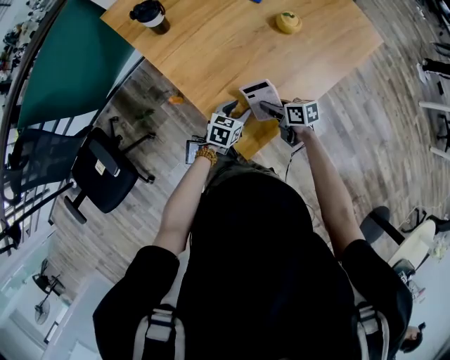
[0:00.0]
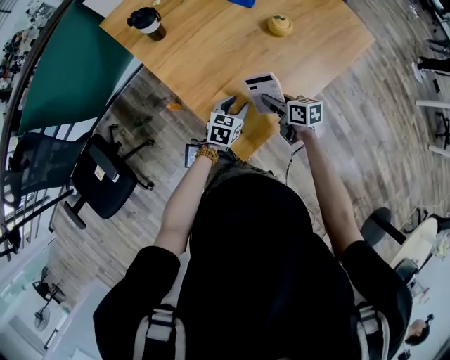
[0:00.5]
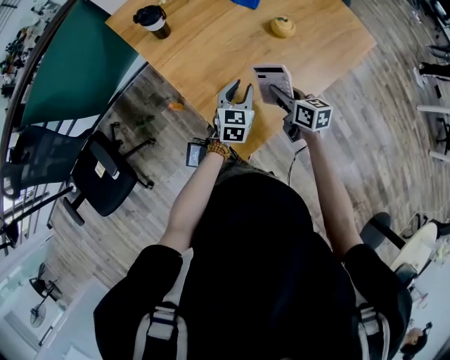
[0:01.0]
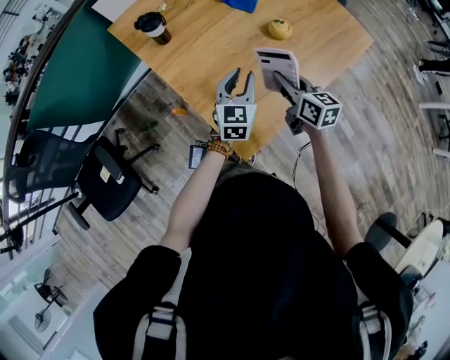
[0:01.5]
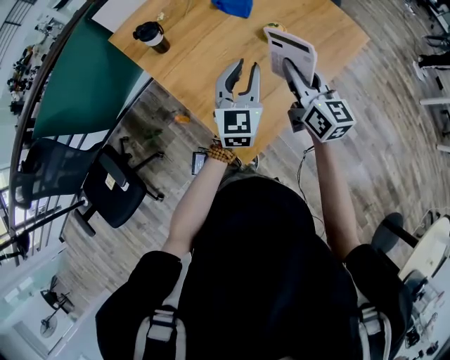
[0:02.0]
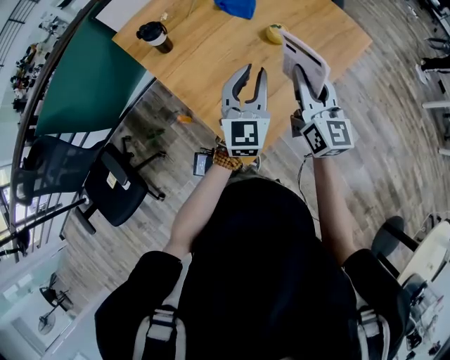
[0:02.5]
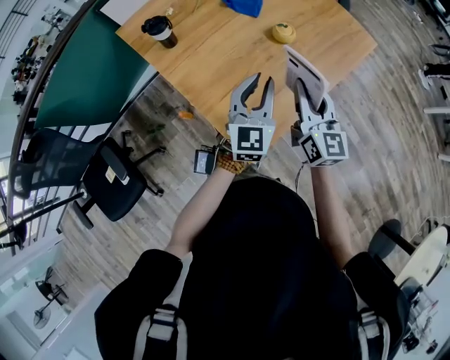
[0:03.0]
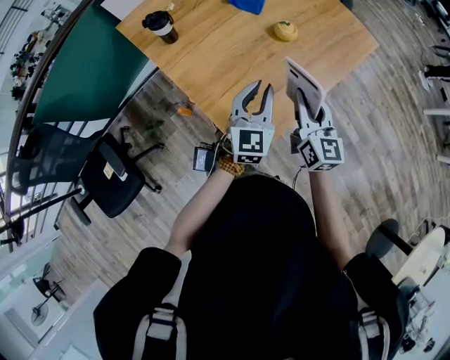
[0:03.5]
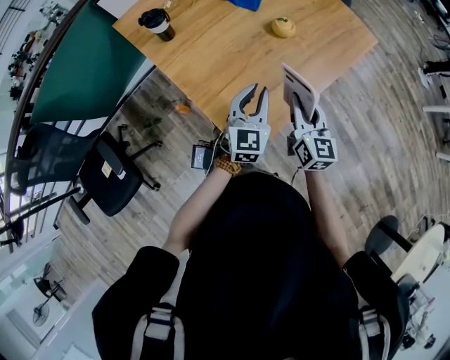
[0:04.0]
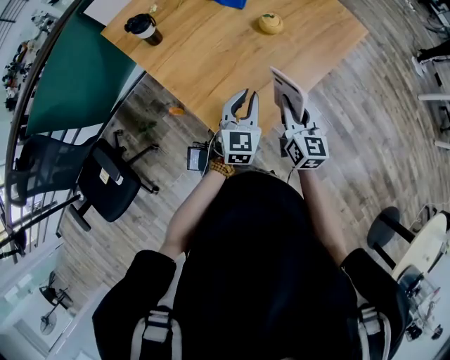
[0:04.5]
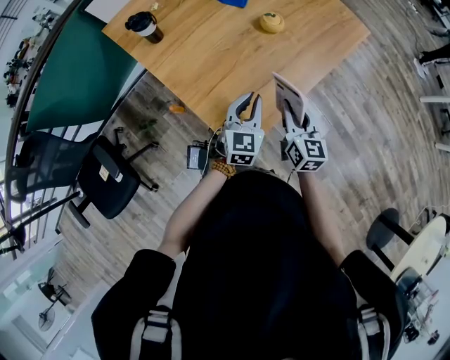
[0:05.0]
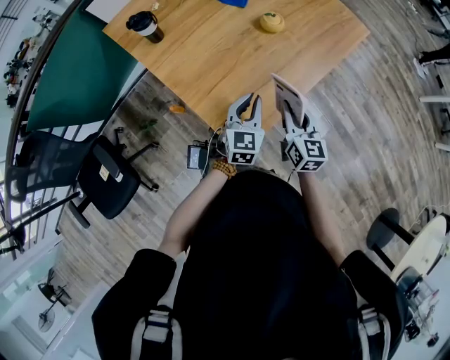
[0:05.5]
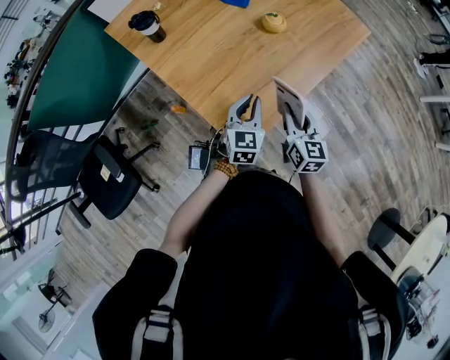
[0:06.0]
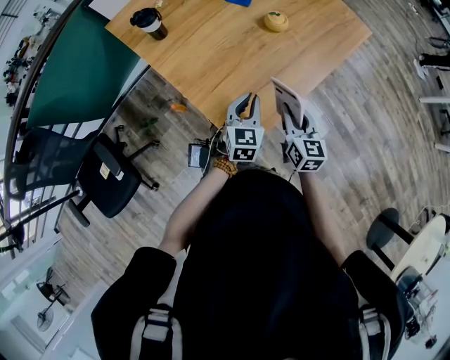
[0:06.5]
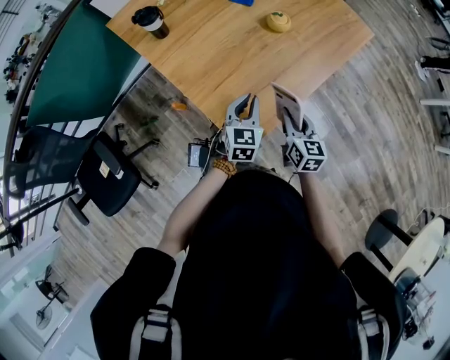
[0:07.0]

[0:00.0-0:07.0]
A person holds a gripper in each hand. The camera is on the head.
0:00.0 to 0:02.0: The two grippers go approximately 30 cm upward. The right gripper tips its fingers upward by approximately 30 degrees. The left gripper tilts its fingers roughly 40 degrees upward, and closes up.
0:02.0 to 0:03.5: The left gripper travels backward by approximately 5 cm. Meanwhile the right gripper goes roughly 10 cm backward and downward.
0:03.5 to 0:05.0: Both grippers travel together downward, roughly 10 cm.
0:05.0 to 0:07.0: The right gripper ends up roughly 5 cm from where it was.

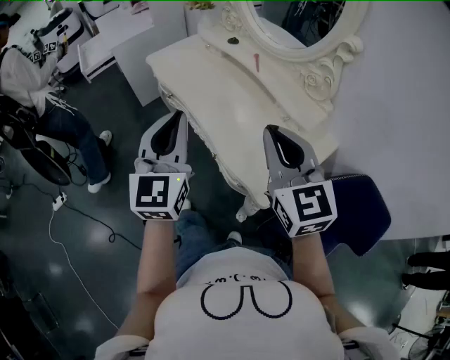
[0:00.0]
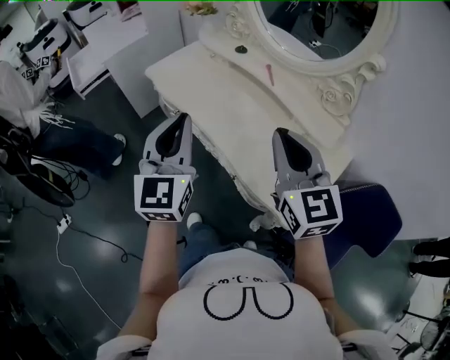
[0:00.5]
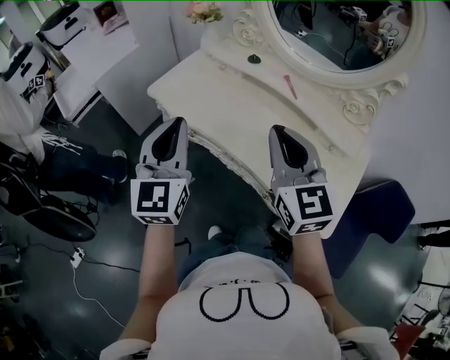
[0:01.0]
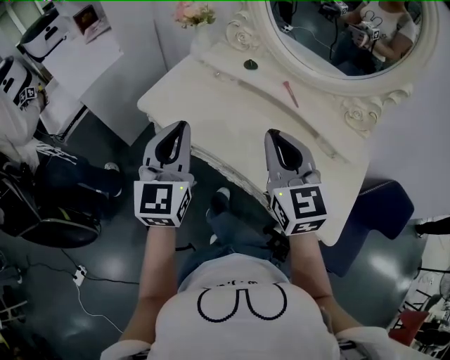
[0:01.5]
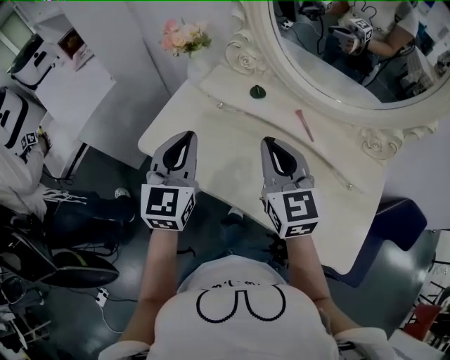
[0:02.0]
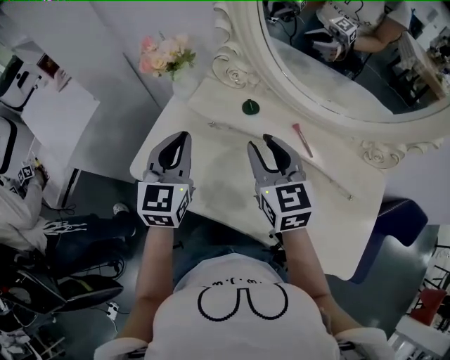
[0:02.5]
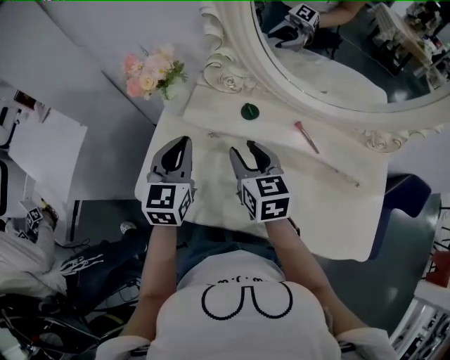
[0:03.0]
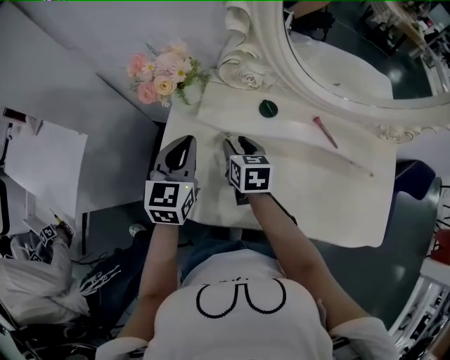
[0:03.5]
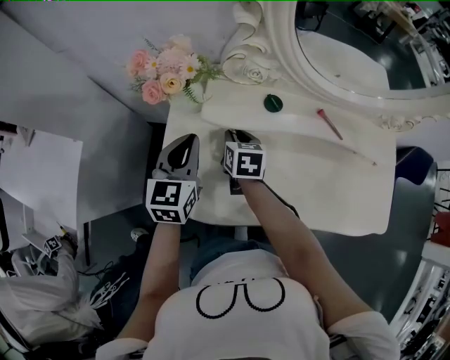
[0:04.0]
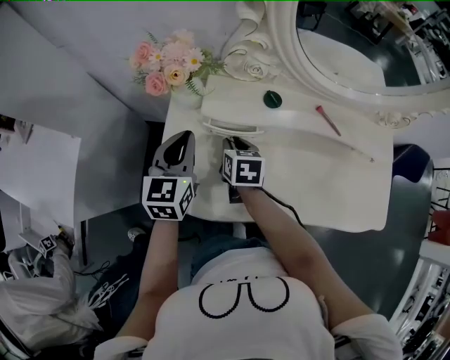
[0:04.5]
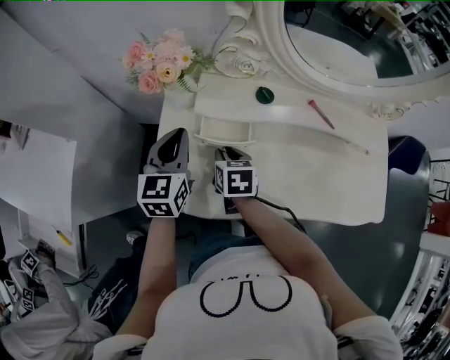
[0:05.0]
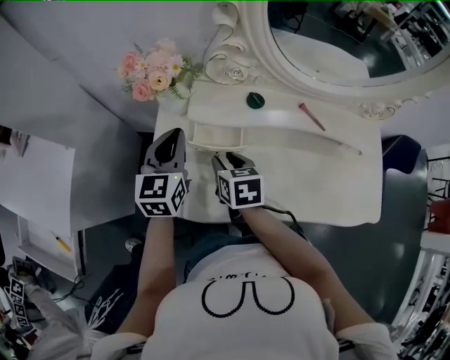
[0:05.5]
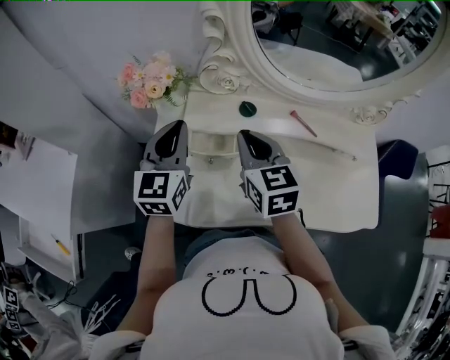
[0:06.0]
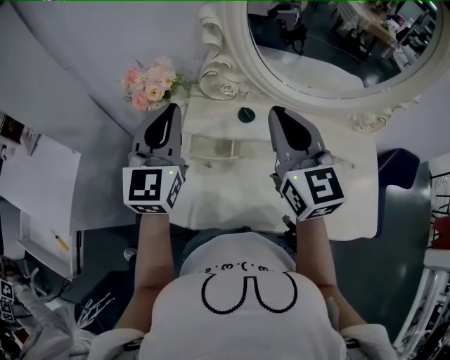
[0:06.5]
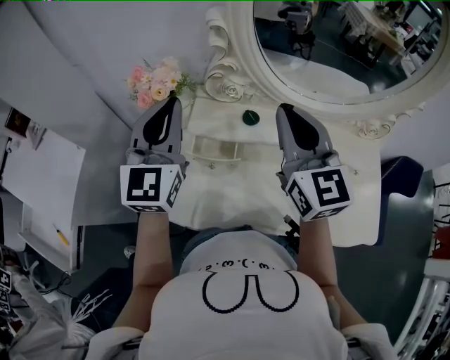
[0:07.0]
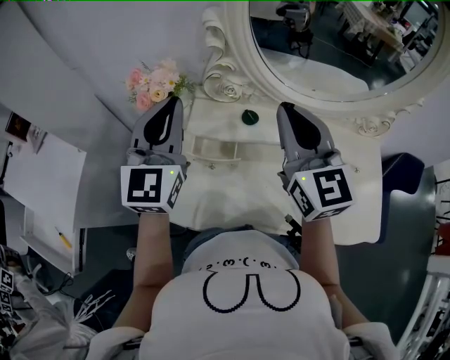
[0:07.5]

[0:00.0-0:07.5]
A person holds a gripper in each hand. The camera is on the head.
0:00.0 to 0:02.0: Both grippers are carried forward and to the left, about 50 cm. The left gripper changes its angle by some 30 degrees. Meanwhile the right gripper rotates about 30 degrees.
0:02.0 to 0:04.0: The right gripper travels downward, forward and to the left by about 35 cm, angles its fingers downward, by roughly 30 degrees, and opens up; the left gripper goes about 25 cm forward, downward and to the left, and turns by about 30 degrees.
0:04.0 to 0:05.5: The right gripper goes some 10 cm backward.
0:05.5 to 0:07.5: The right gripper goes approximately 30 cm upward and to the right, tilts its fingers about 50 degrees upward, and closes up. The left gripper travels upward by approximately 20 cm, and rotates about 30 degrees.

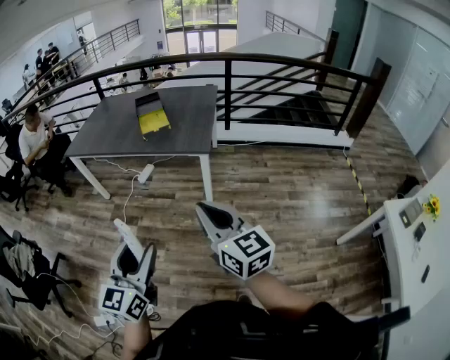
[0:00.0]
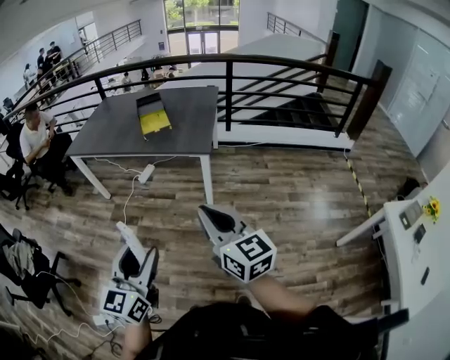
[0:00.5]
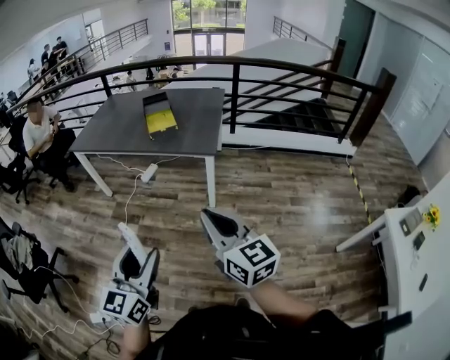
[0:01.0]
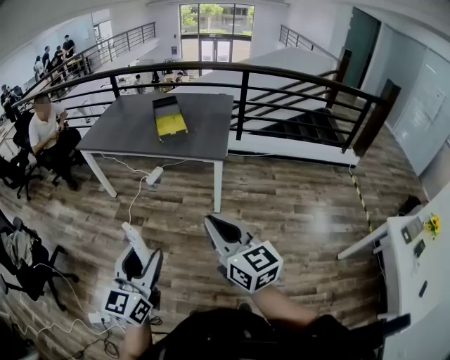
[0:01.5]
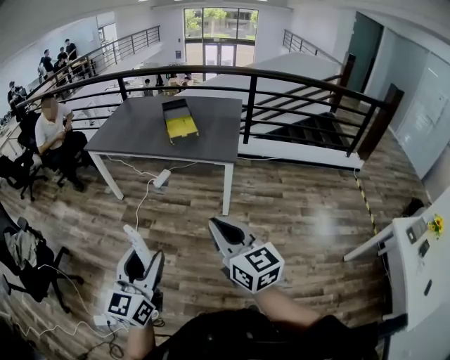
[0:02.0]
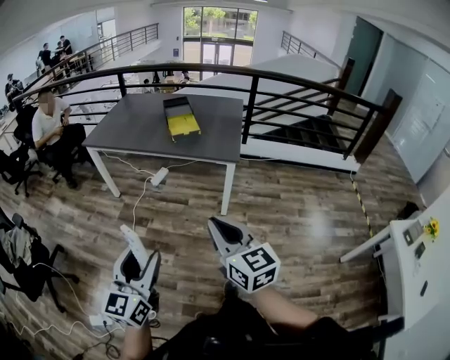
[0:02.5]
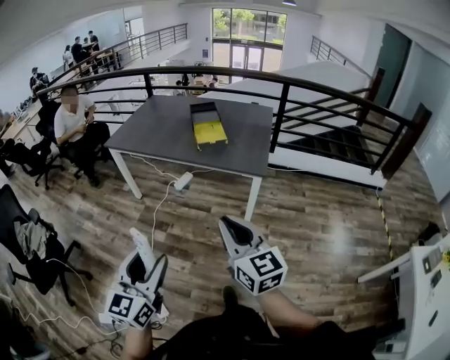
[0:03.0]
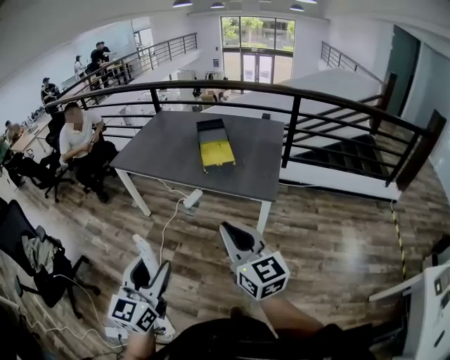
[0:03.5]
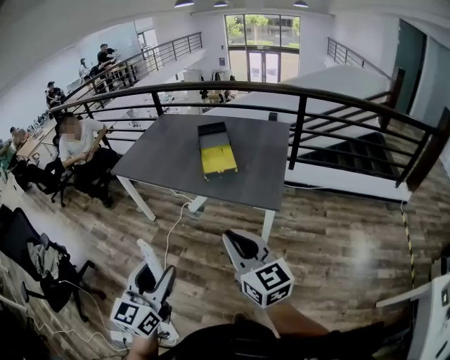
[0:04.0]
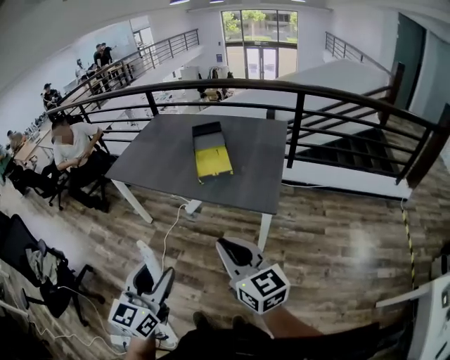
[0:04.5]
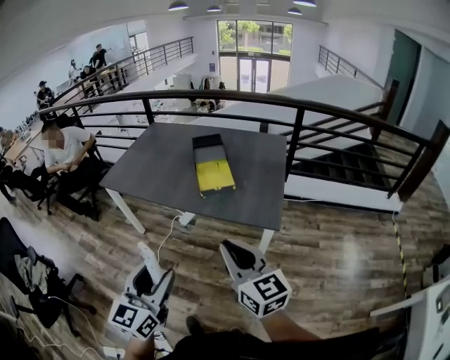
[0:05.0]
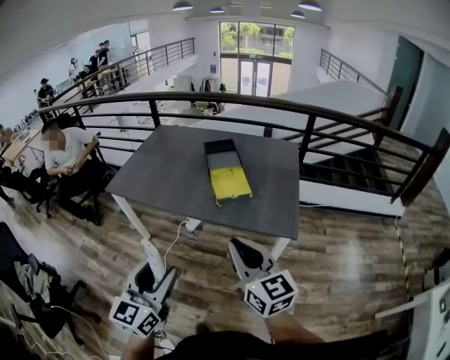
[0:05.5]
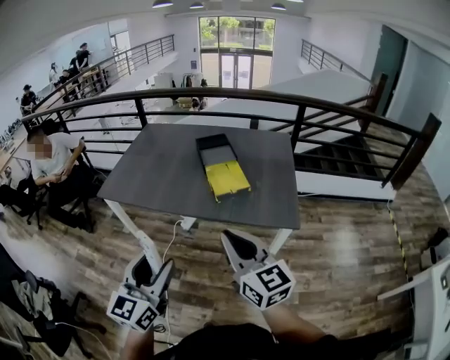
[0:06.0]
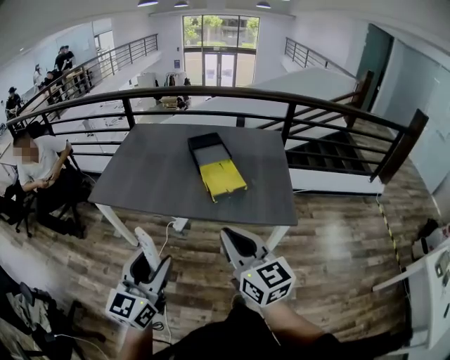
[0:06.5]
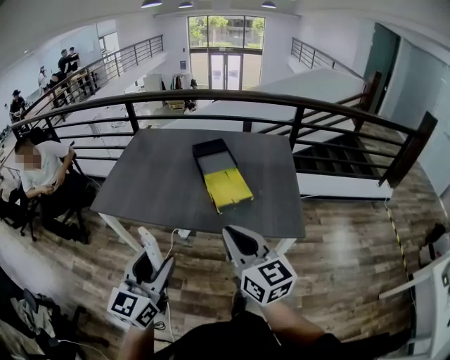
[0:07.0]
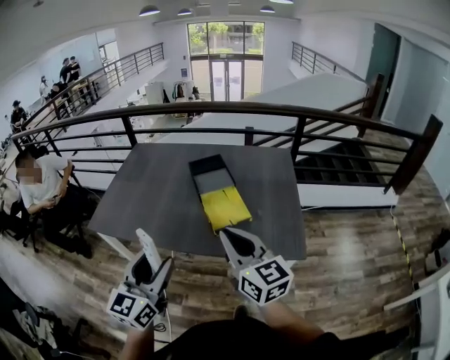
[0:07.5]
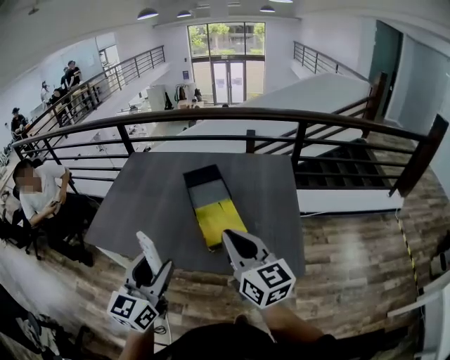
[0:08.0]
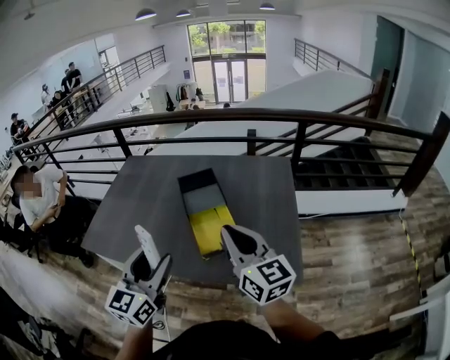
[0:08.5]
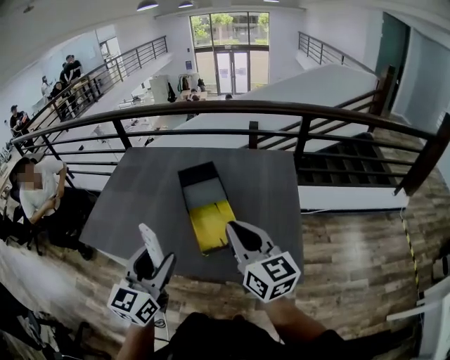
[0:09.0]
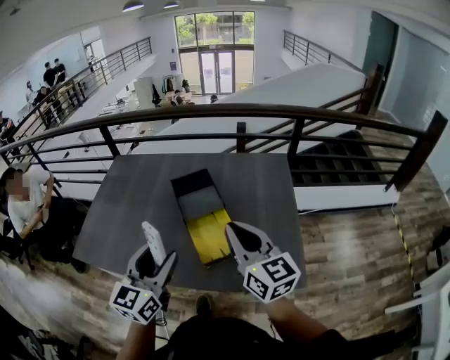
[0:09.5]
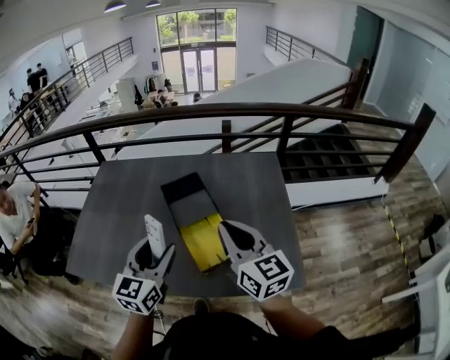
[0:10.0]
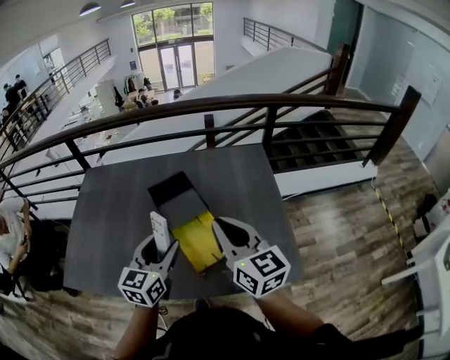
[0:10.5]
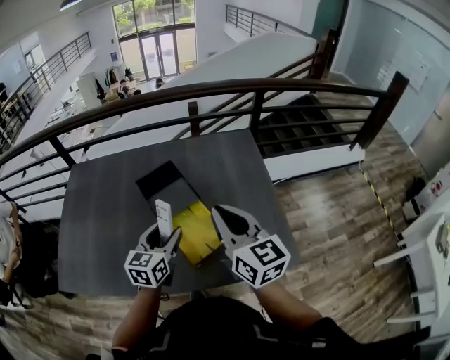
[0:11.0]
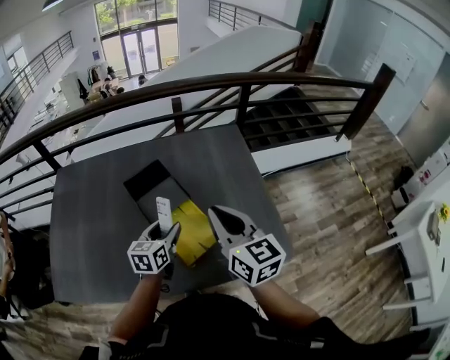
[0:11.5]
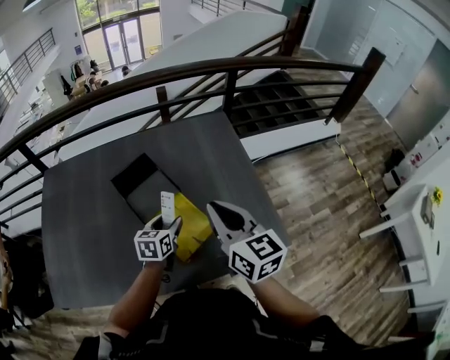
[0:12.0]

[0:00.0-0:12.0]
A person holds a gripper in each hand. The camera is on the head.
0:00.0 to 0:02.0: Both grippers move to the left, roughly 10 cm.
0:02.0 to 0:04.0: The grippers both shift forward by approximately 30 cm.
0:04.0 to 0:06.0: Both grippers travel together forward and to the left, about 30 cm.
0:06.0 to 0:08.0: Both grippers travel together forward, roughly 30 cm.
0:08.0 to 0:10.0: The two grippers go approximately 20 cm forward.
0:10.0 to 0:12.0: The left gripper moves downward and forward, some 30 cm, and turns by about 30 degrees; the right gripper heads downward and forward, covering some 10 cm.
